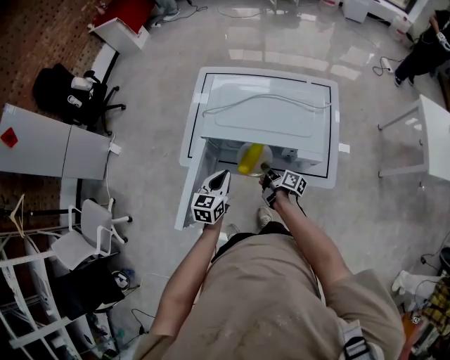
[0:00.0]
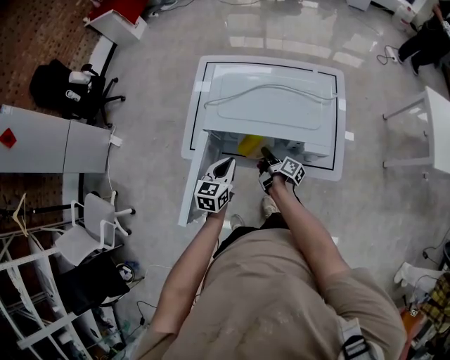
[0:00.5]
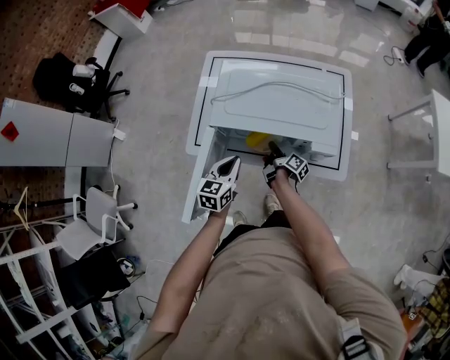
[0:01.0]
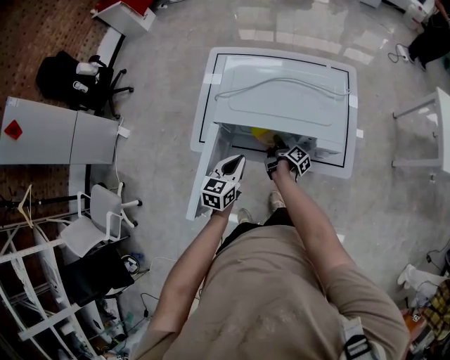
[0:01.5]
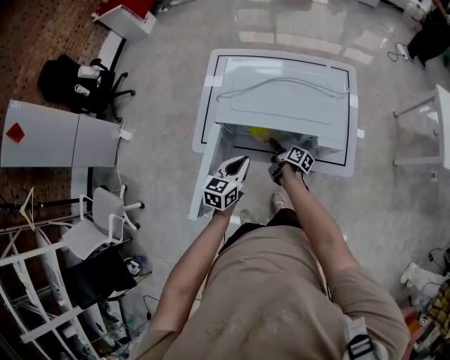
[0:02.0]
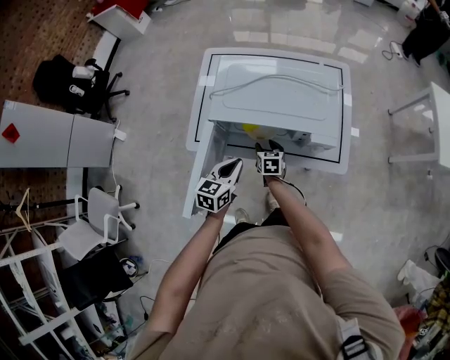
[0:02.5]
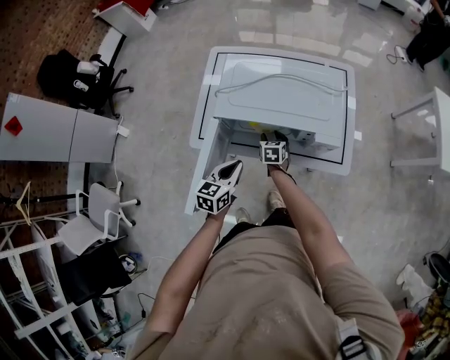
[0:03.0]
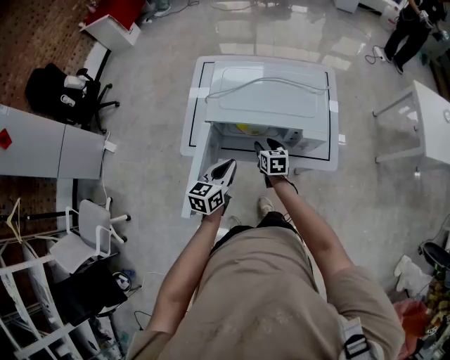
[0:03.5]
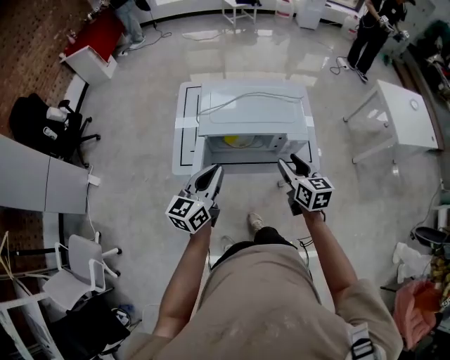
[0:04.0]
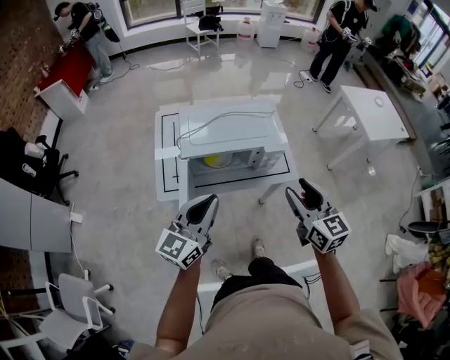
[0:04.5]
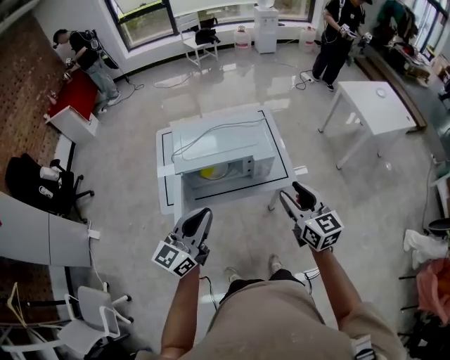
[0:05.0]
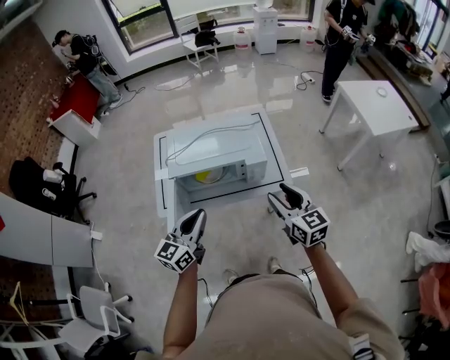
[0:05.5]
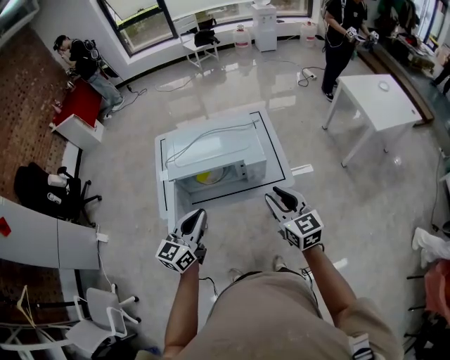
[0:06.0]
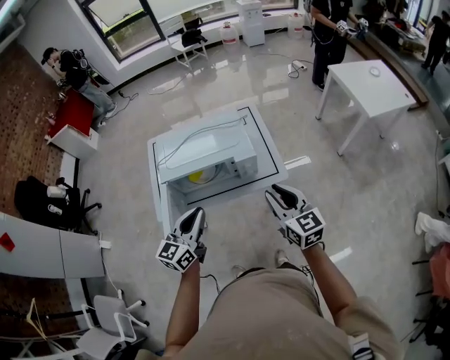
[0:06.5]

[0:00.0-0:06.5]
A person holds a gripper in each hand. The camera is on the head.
0:00.0 to 0:02.0: The right gripper shifts by about 5 cm, and opens its fingers.
0:02.0 to 0:04.5: The right gripper heads upward and backward, covering approximately 50 cm, and rolls counterclockwise, seen from behind, by roughly 70 degrees, while the left gripper travels upward and backward by roughly 30 cm, and angles its fingers upward, by approximately 30 degrees.
0:04.5 to 0:06.5: The two grippers go approximately 10 cm to the right and downward. The right gripper closes its fingers.

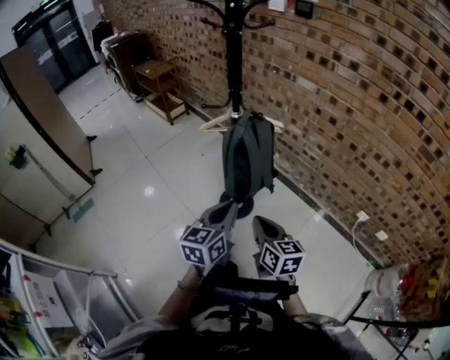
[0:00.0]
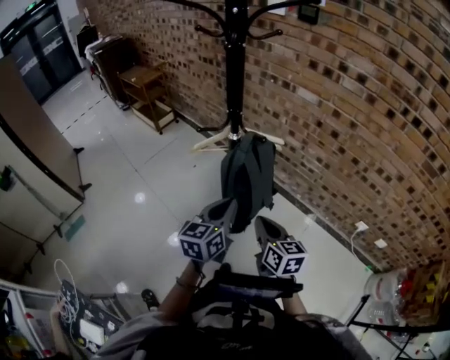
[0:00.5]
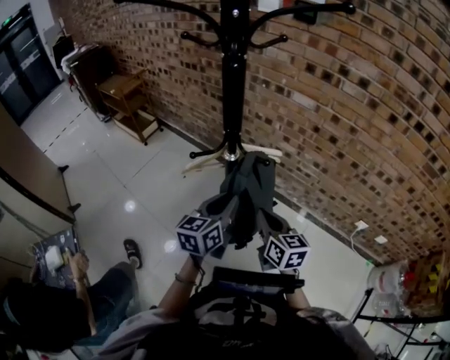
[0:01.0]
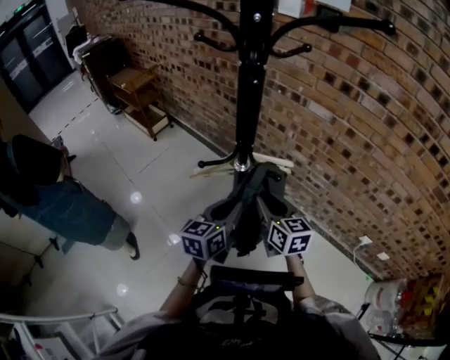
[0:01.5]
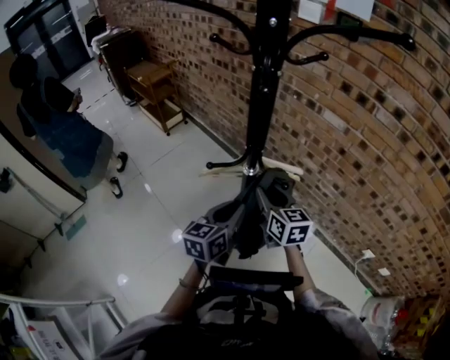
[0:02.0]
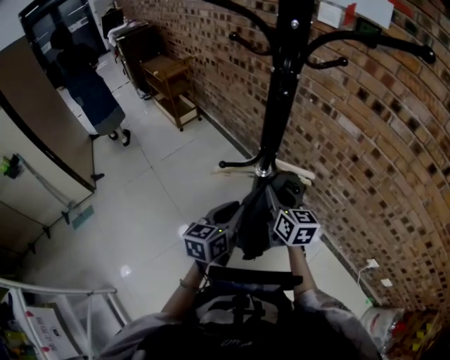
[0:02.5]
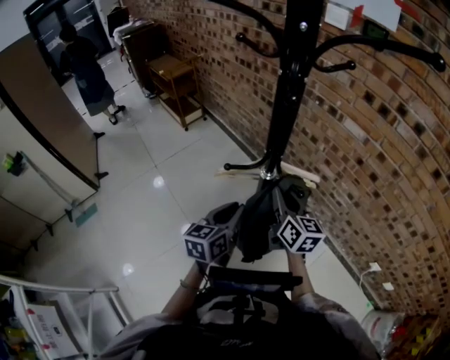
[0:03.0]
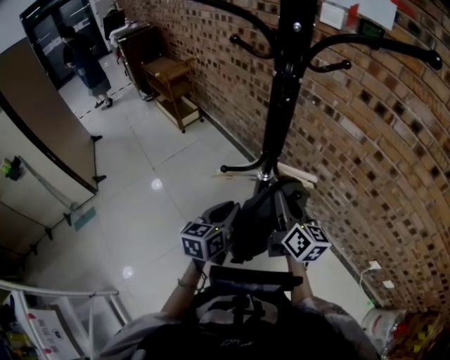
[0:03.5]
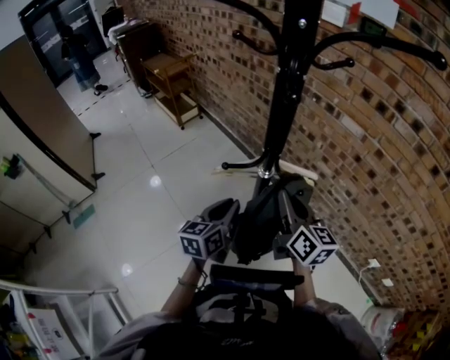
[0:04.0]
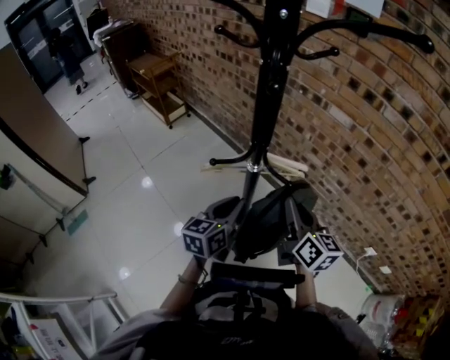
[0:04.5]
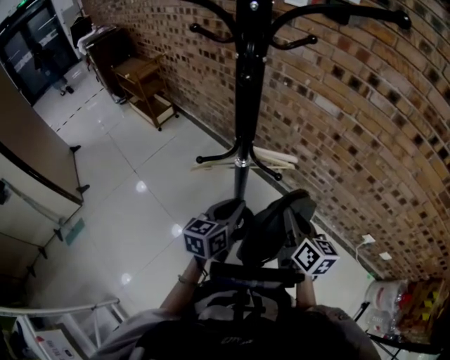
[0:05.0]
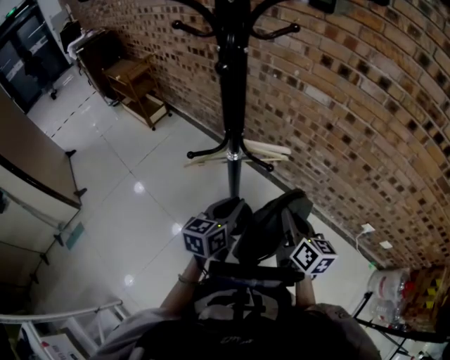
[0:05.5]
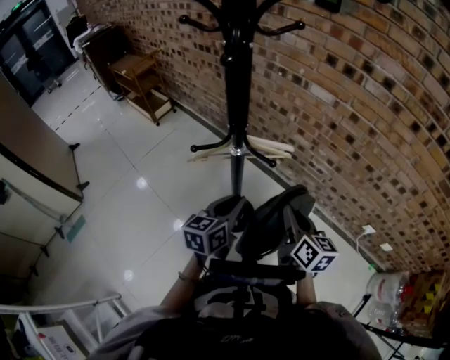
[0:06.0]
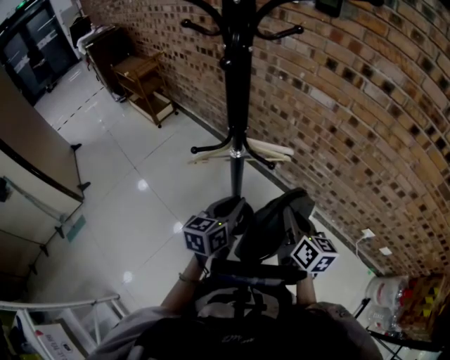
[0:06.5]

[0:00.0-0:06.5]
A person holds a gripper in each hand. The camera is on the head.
0:00.0 to 0:02.0: Both grippers move forward, approximately 30 cm. The right gripper opens.
0:02.0 to 0:04.5: The right gripper is displaced to the right and backward by approximately 10 cm.
0:04.5 to 0:06.5: The right gripper shifts some 10 cm to the right and downward; the left gripper goes some 5 cm to the right.

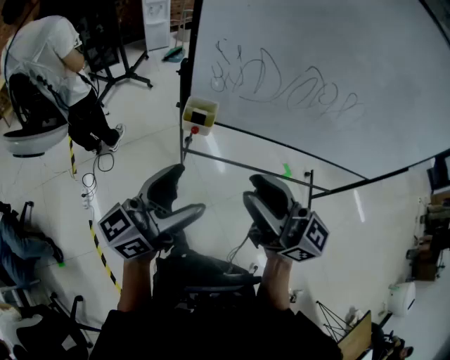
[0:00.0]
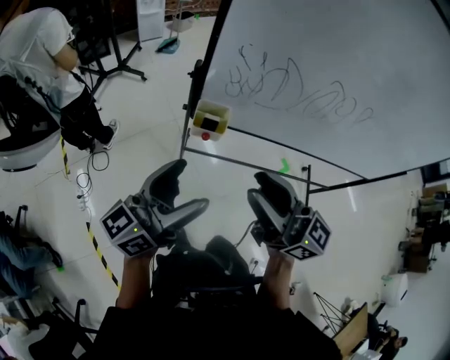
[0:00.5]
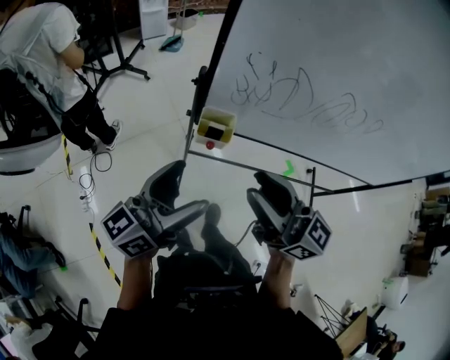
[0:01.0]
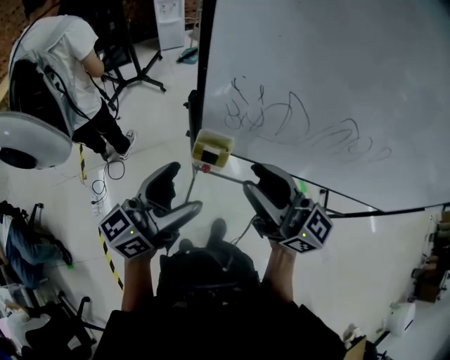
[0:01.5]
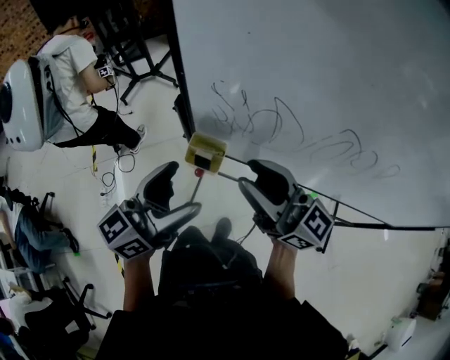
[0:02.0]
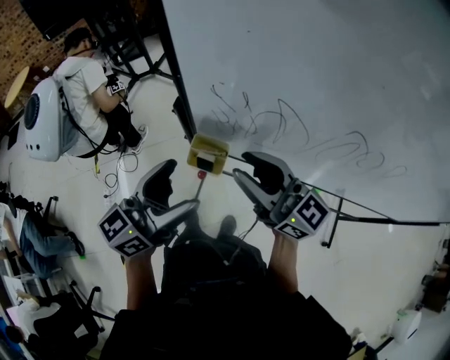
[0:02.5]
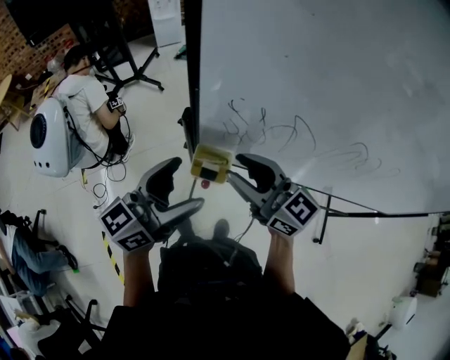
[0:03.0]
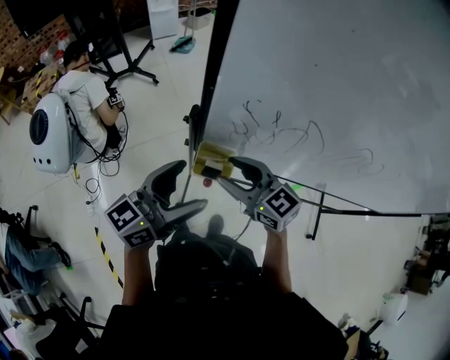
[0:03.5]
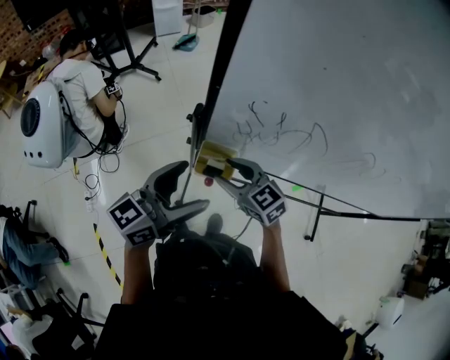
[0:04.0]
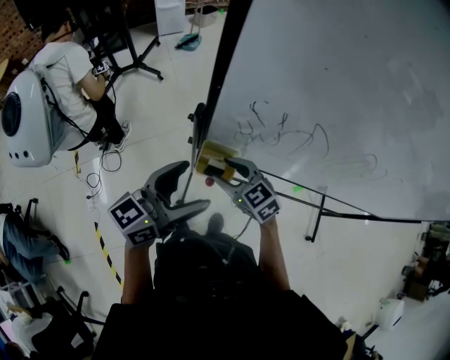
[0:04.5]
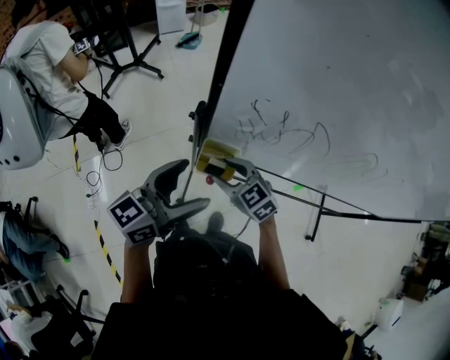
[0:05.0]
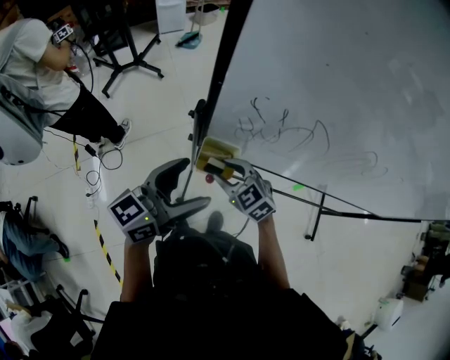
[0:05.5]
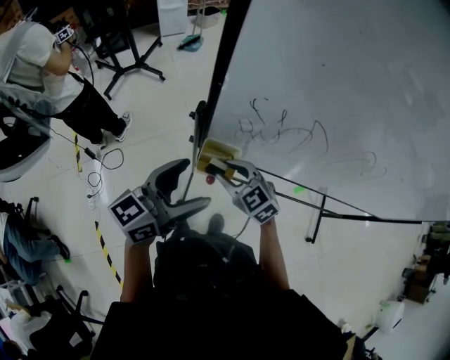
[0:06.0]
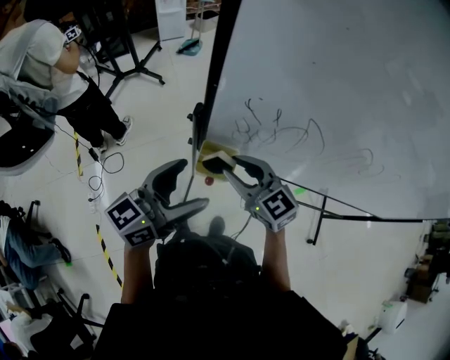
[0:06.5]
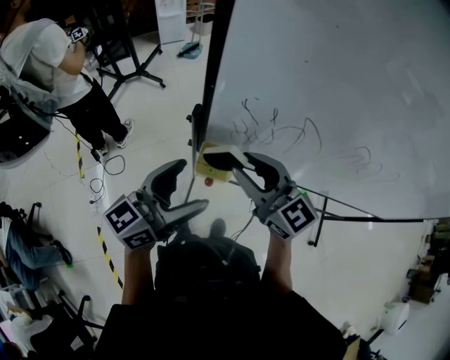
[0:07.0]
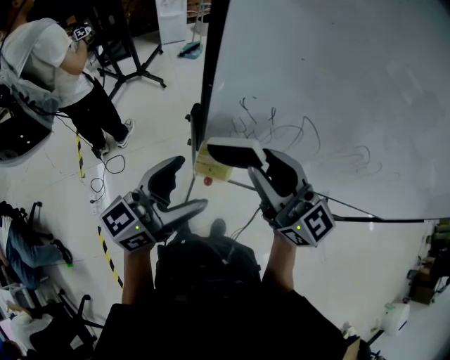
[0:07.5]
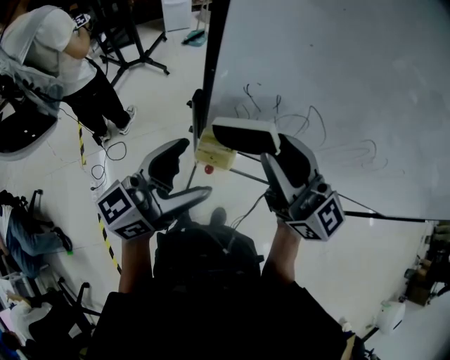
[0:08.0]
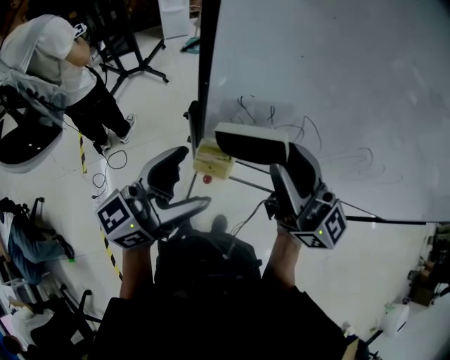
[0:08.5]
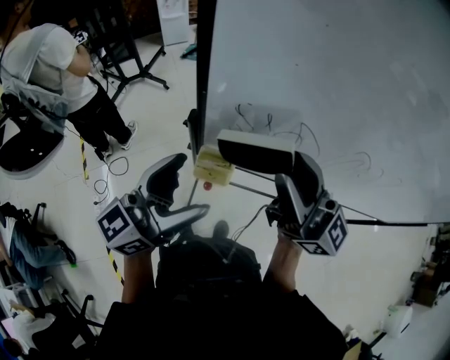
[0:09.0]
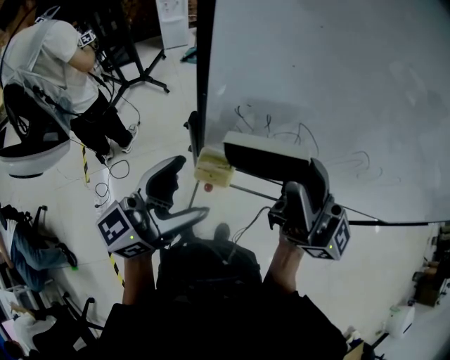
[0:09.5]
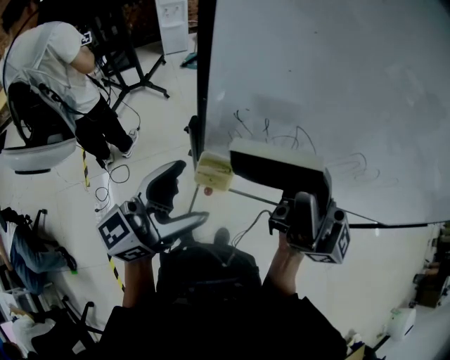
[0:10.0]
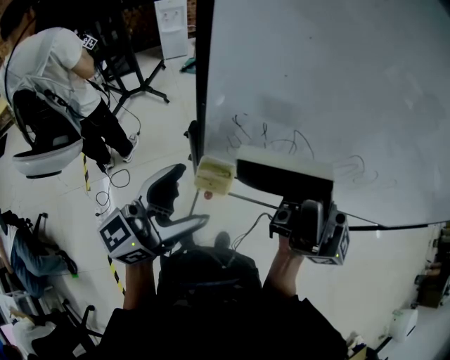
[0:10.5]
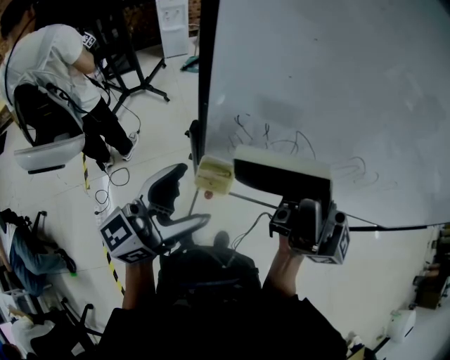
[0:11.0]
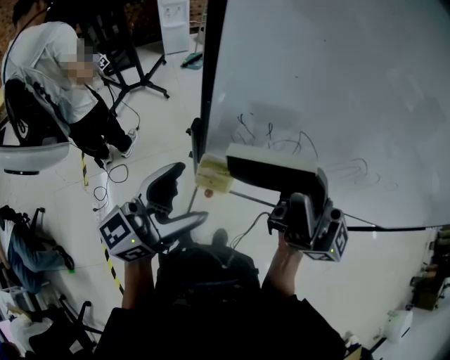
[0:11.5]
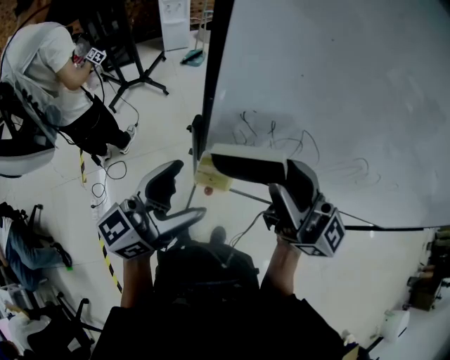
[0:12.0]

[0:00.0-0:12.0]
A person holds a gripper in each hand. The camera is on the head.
0:00.0 to 0:02.0: The grippers both shift forward by about 20 cm.
0:02.0 to 0:04.0: The left gripper shifts about 10 cm downward and forward, while the right gripper goes roughly 25 cm downward, to the left and forward, tilts its fingers some 40 degrees downward, and opens.
0:04.0 to 0:06.0: The grippers move only a little.
0:06.0 to 0:08.0: The left gripper travels upward by approximately 10 cm. The right gripper is displaced upward by some 25 cm, and tilts its fingers roughly 50 degrees upward.
0:08.0 to 0:10.0: The right gripper shifts roughly 10 cm upward, and swivels approximately 30 degrees.
0:10.0 to 0:12.0: The right gripper shifts some 5 cm downward.

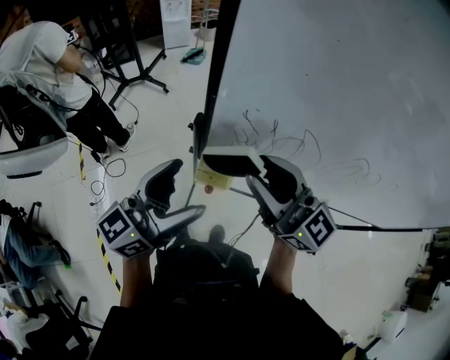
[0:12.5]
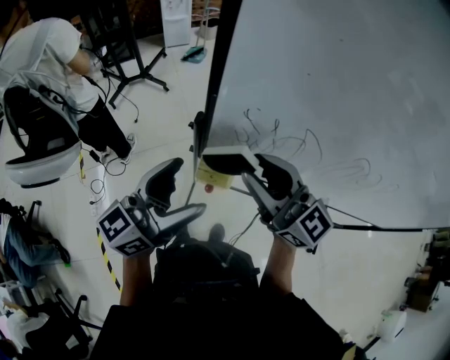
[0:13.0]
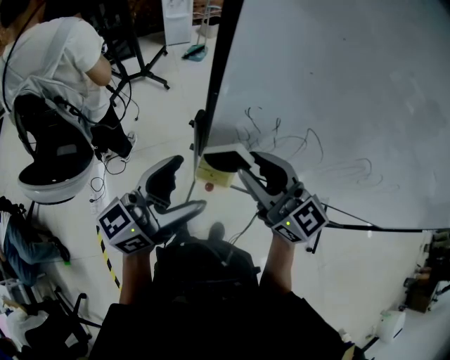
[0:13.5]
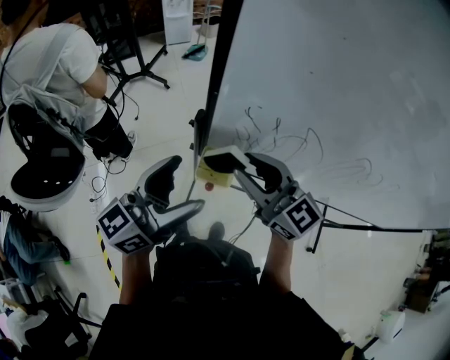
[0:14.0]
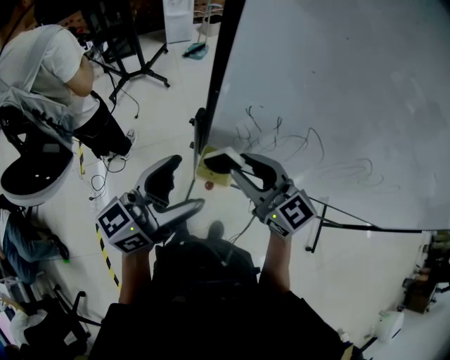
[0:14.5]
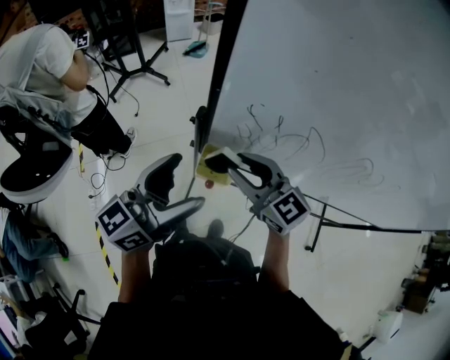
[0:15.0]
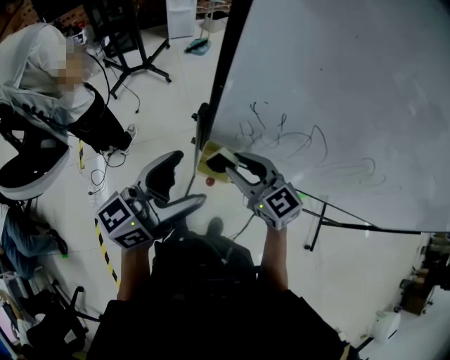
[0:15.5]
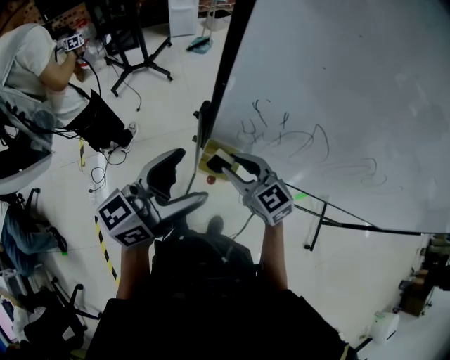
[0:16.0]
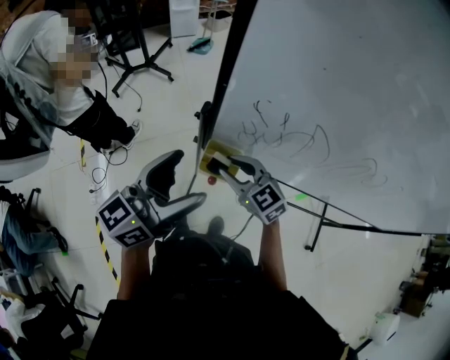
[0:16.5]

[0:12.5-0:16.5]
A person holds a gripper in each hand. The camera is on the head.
0:12.5 to 0:14.5: The right gripper travels downward by roughly 10 cm.
0:14.5 to 0:16.5: The right gripper moves downward, about 10 cm.
